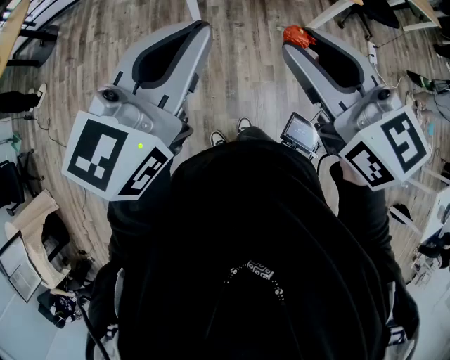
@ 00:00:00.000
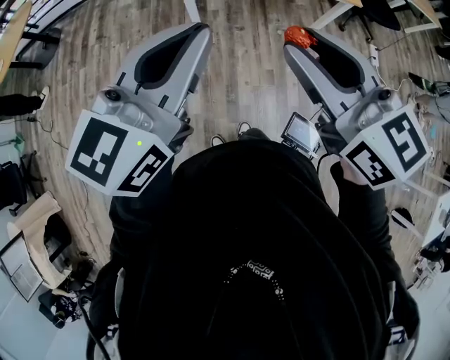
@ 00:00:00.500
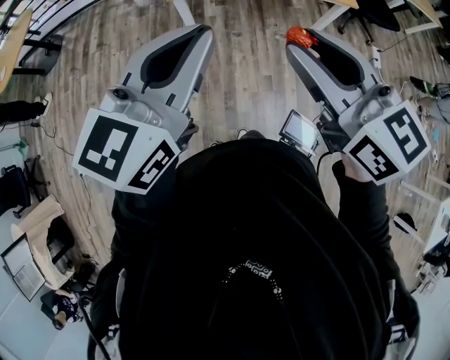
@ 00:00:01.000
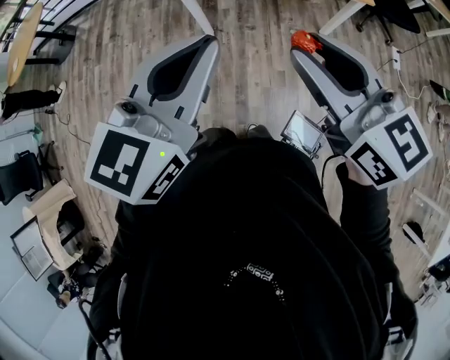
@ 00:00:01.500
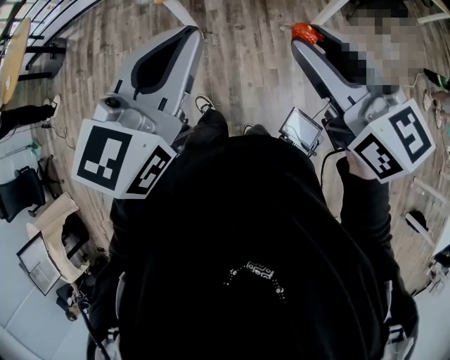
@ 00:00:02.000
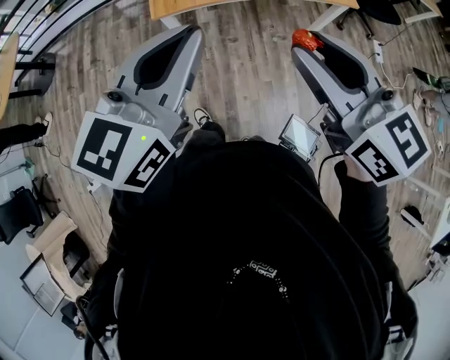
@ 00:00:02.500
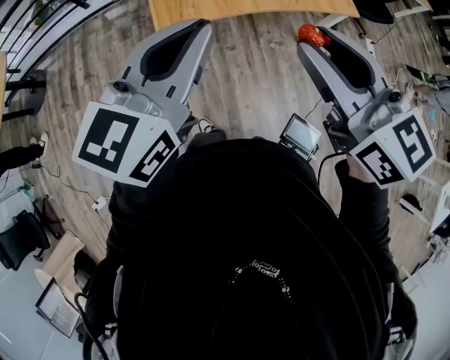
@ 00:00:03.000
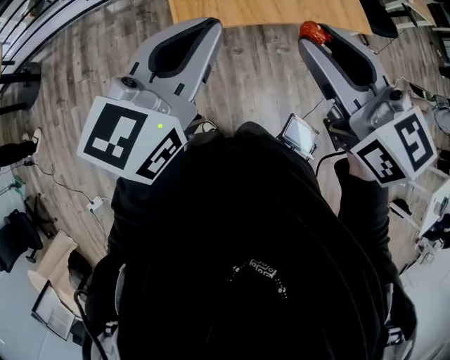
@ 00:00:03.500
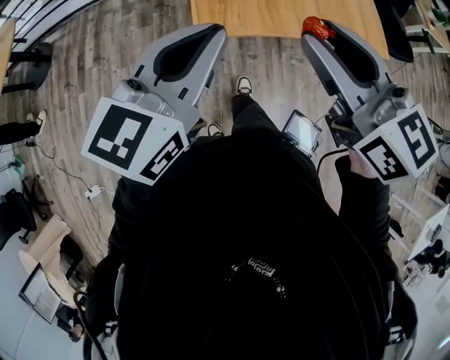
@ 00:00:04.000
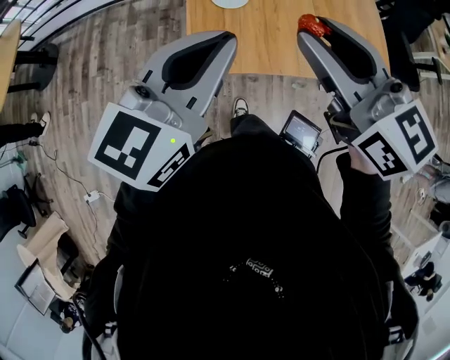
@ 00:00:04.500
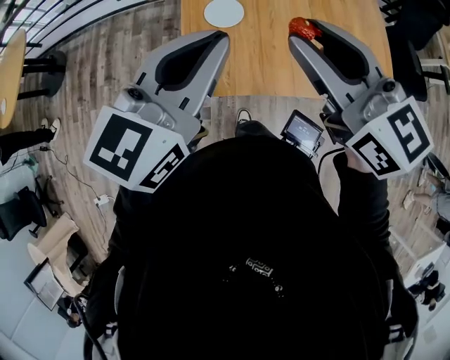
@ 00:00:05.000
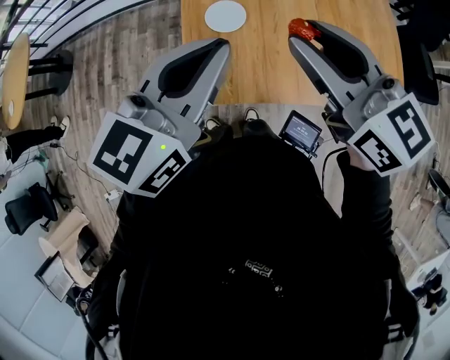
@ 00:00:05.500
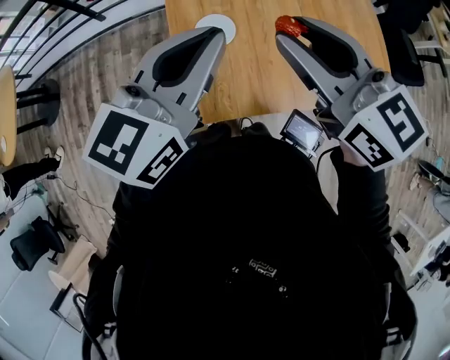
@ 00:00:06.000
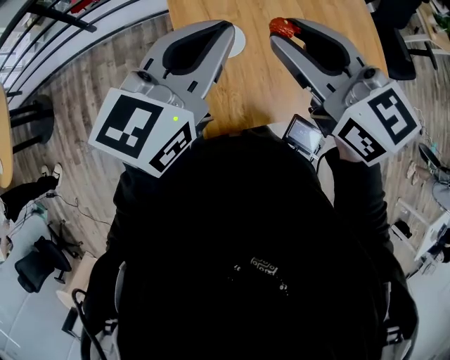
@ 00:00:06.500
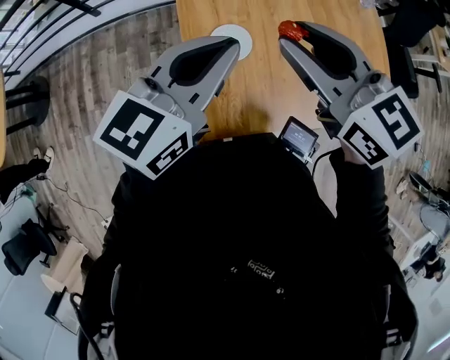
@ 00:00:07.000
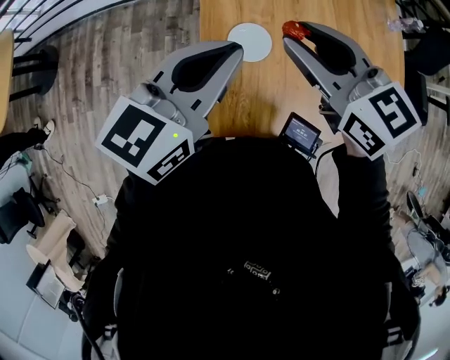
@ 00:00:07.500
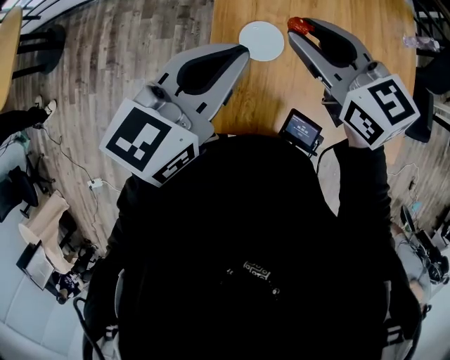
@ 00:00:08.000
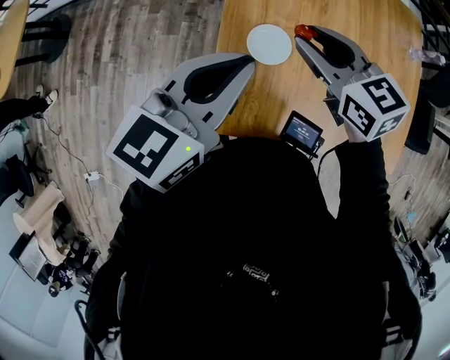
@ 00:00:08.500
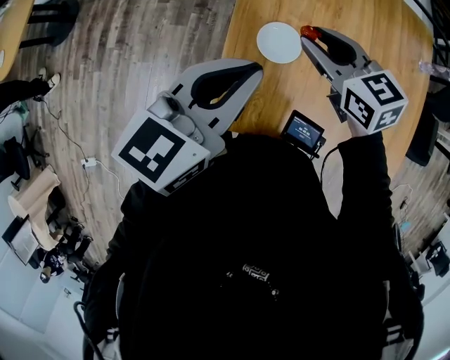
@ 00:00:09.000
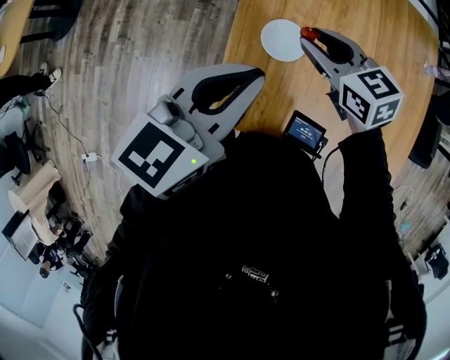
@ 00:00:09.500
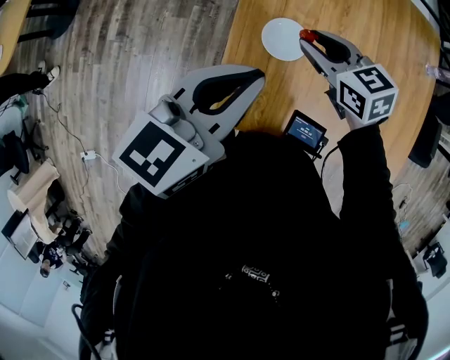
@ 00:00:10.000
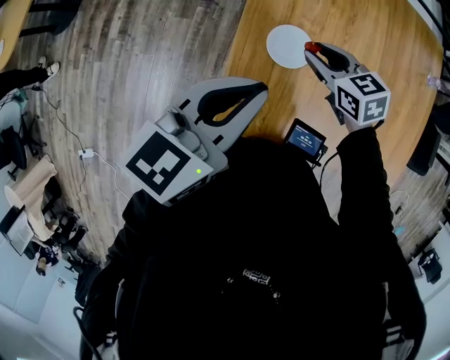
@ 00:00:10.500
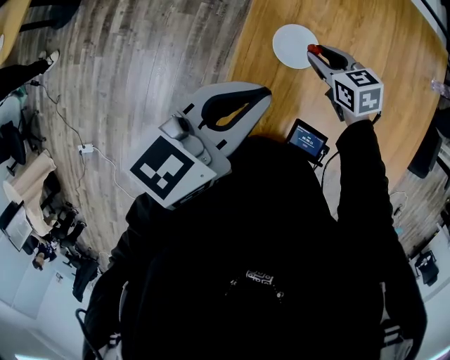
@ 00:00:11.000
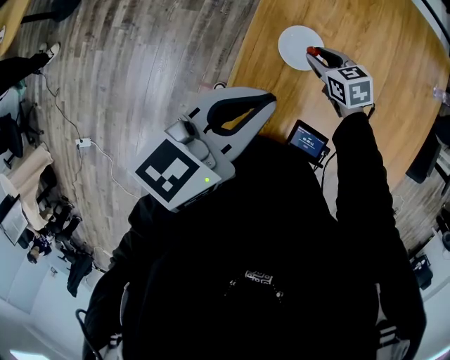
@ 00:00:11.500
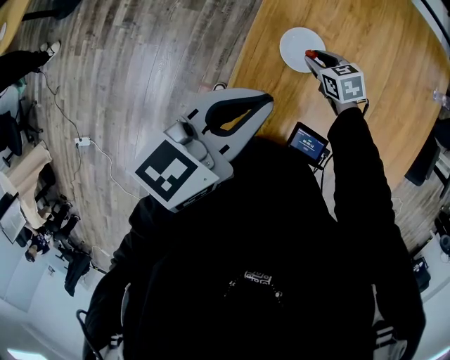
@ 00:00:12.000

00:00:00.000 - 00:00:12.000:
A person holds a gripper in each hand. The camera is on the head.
00:00:00.000 - 00:00:02.000: Both grippers travel together to the right and forward, some 15 cm.
00:00:02.000 - 00:00:04.000: Both grippers travel together forward and to the left, approximately 30 cm.
00:00:04.000 - 00:00:06.000: The two grippers go about 25 cm forward.
00:00:06.000 - 00:00:08.000: The left gripper shifts approximately 10 cm to the left, forward and downward; the right gripper travels forward, downward and to the left by roughly 15 cm.
00:00:08.000 - 00:00:10.000: The right gripper goes approximately 15 cm downward.
00:00:10.000 - 00:00:12.000: The right gripper moves downward, roughly 20 cm, and turns by about 20 degrees.

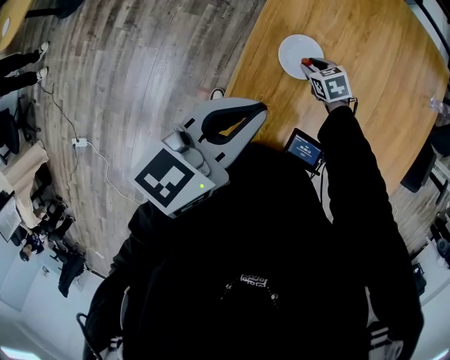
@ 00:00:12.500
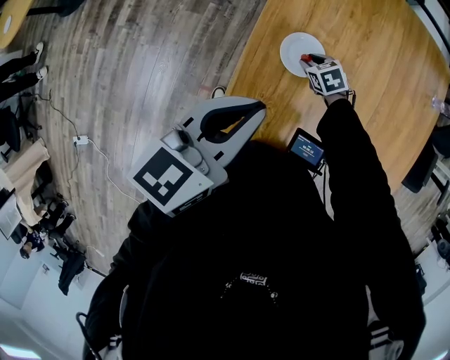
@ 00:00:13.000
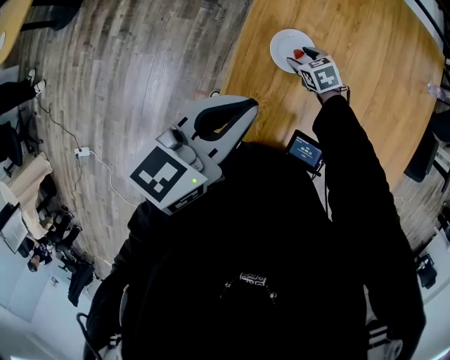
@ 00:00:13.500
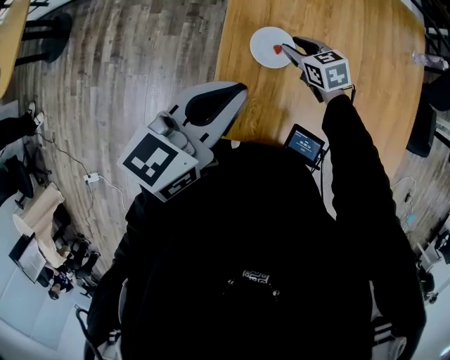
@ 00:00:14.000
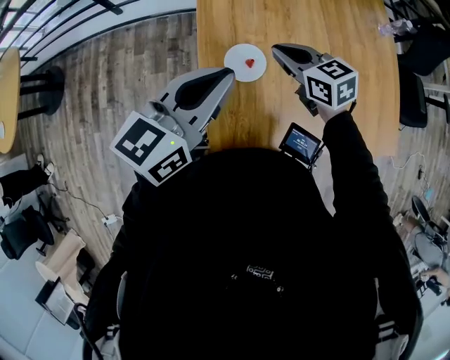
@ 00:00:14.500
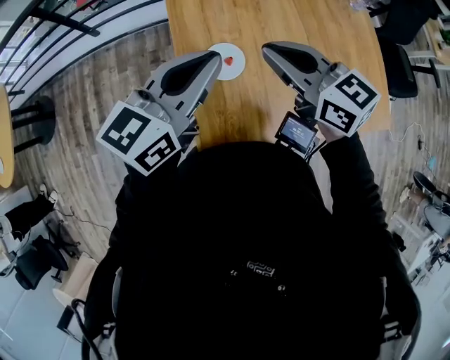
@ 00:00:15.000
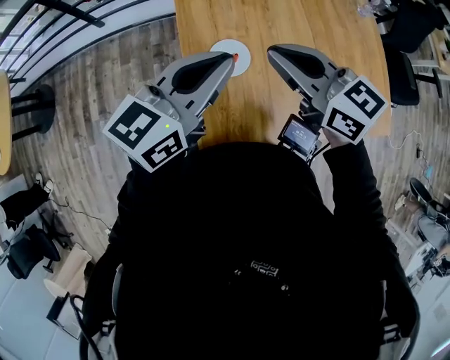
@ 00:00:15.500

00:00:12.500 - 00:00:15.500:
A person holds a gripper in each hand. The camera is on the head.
00:00:12.500 - 00:00:14.000: The right gripper shifts approximately 10 cm upward, and swivels some 20 degrees.
00:00:14.000 - 00:00:15.500: The right gripper shifts some 30 cm upward, tilts its fingers some 30 degrees upward, and closes up. The left gripper shifts approximately 10 cm to the right and forward.

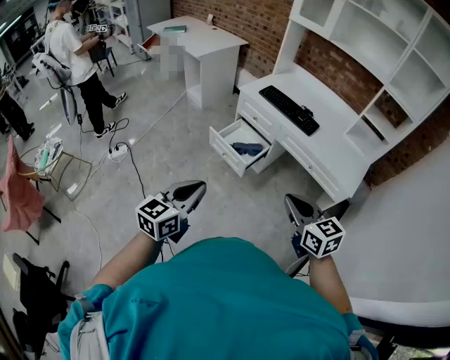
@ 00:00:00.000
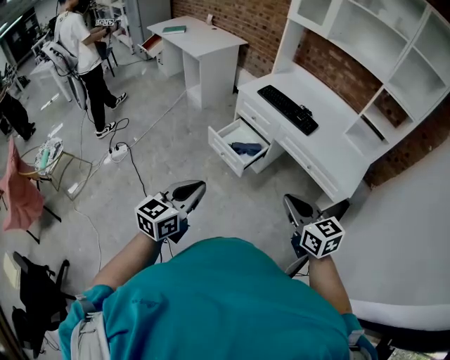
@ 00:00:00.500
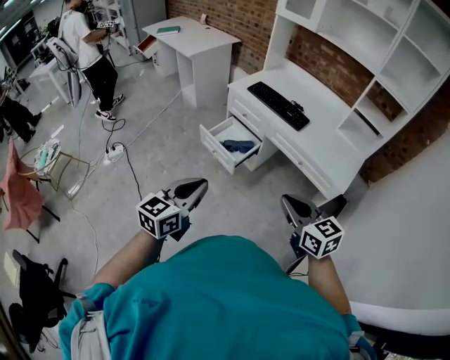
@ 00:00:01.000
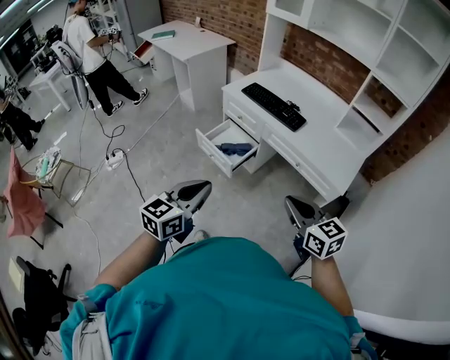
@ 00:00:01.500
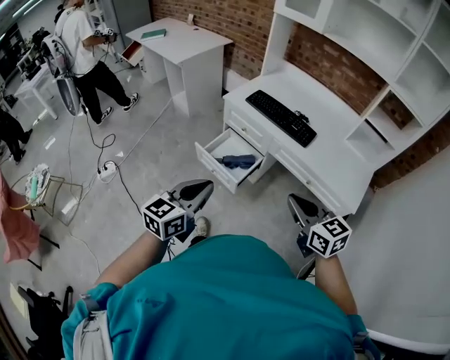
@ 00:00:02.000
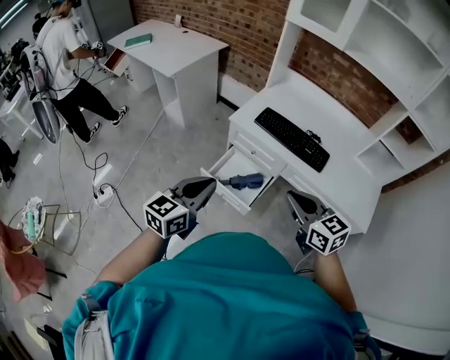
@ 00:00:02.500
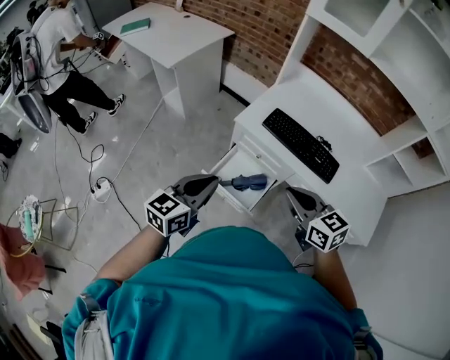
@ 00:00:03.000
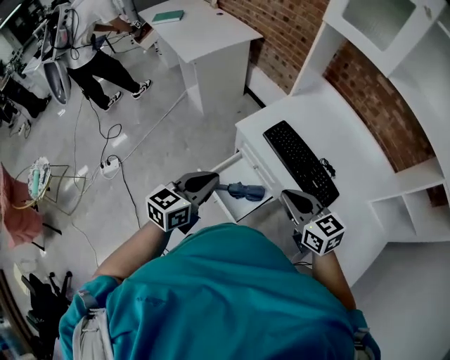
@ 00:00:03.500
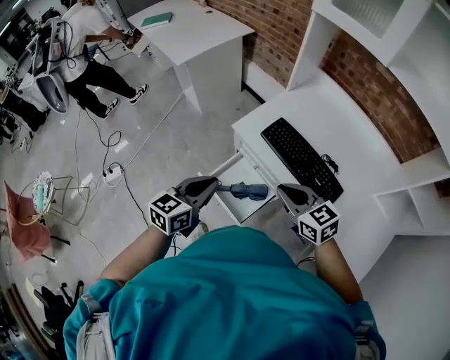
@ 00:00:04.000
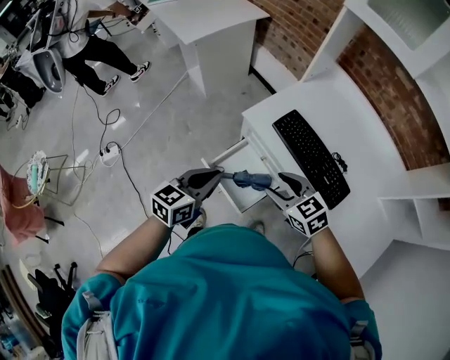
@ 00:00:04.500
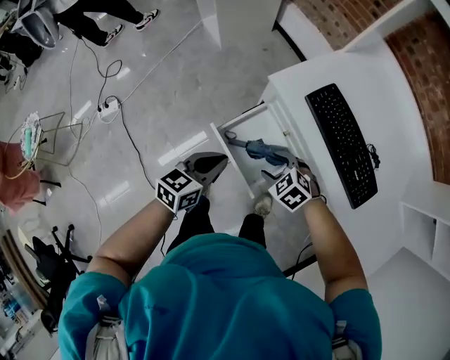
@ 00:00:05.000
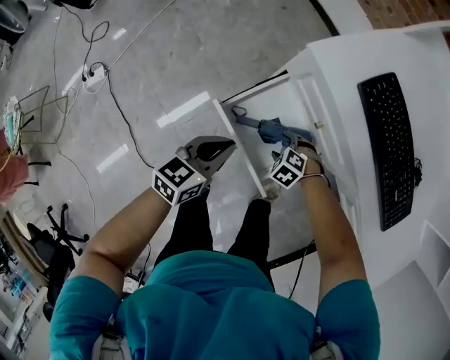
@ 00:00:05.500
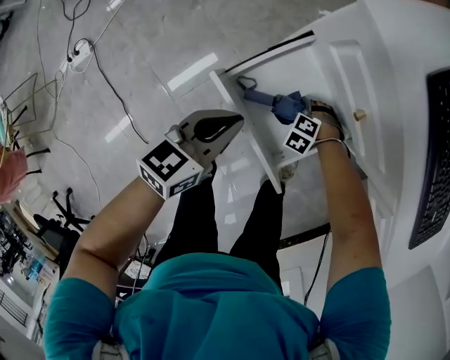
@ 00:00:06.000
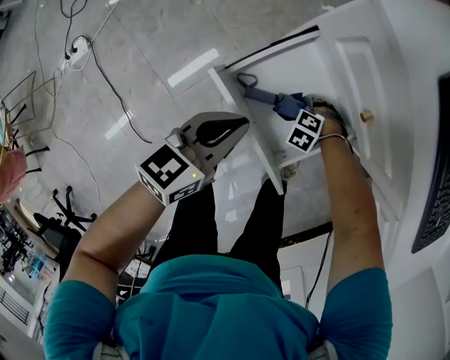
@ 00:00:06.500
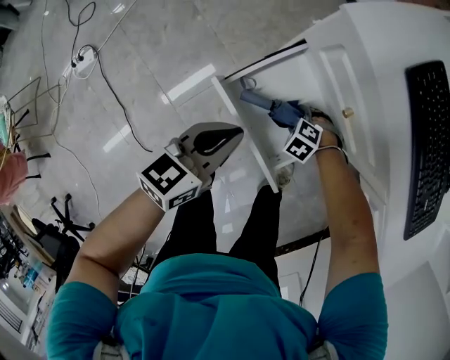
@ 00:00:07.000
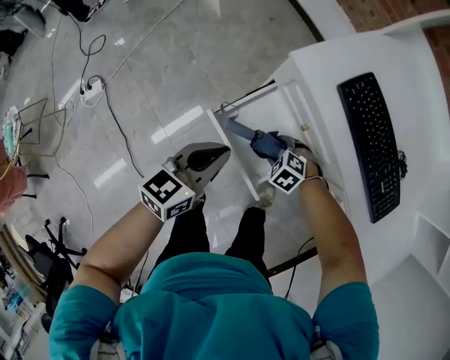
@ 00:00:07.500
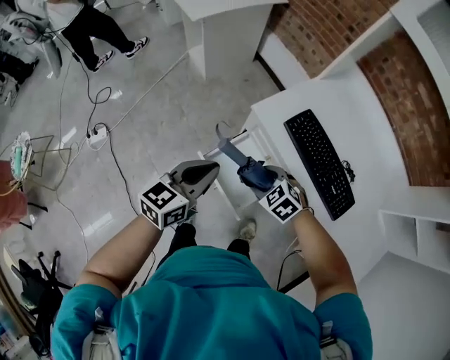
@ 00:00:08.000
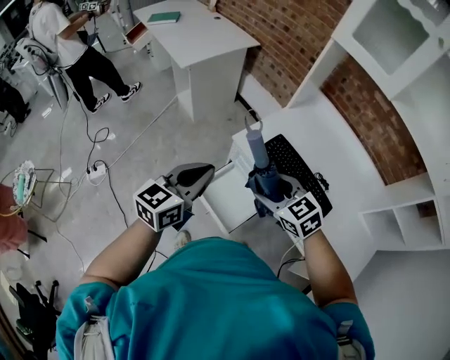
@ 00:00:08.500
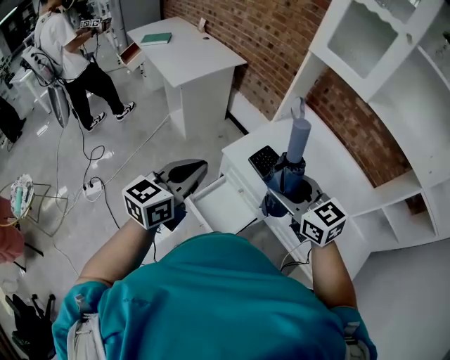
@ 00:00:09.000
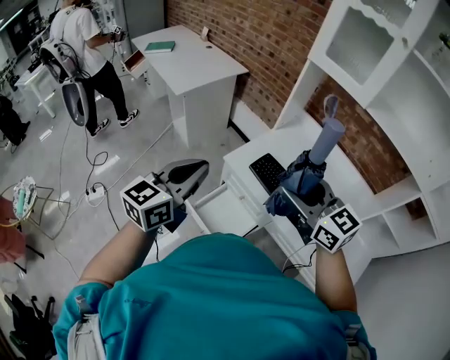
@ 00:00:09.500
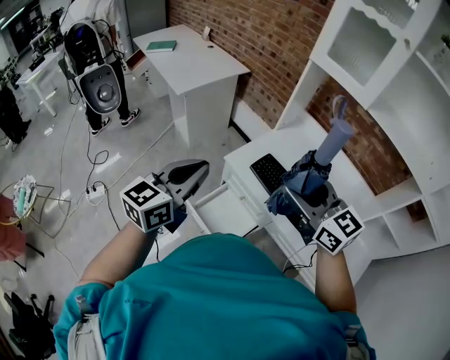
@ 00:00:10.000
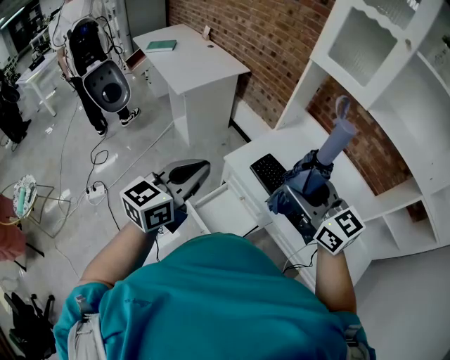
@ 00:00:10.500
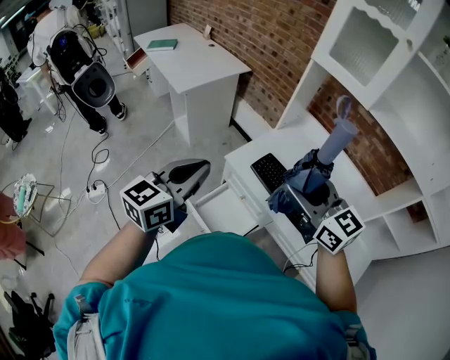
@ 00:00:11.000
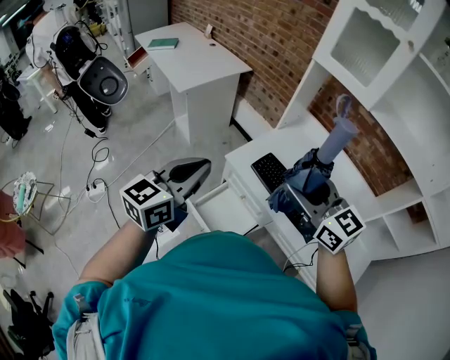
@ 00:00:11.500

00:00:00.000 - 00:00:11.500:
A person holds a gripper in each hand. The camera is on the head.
00:00:00.000 - 00:00:02.000: The grippers both shift forward by approximately 15 cm.
00:00:02.000 - 00:00:04.000: The two grippers go roughly 35 cm forward.
00:00:04.000 - 00:00:06.000: The right gripper travels downward by some 60 cm, points its fingers roughly 60 degrees further downward, and opens up; the left gripper travels downward by approximately 40 cm.
00:00:06.000 - 00:00:07.500: The grippers both shift upward by roughly 15 cm.
00:00:07.500 - 00:00:09.500: The left gripper is displaced upward by approximately 40 cm, and swivels roughly 20 degrees. The right gripper moves upward, about 60 cm, and points its fingers some 70 degrees further upward.
00:00:09.500 - 00:00:11.500: Neither gripper changes place.
